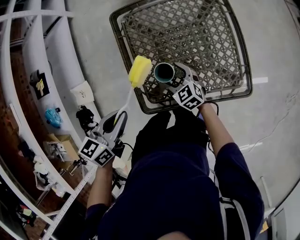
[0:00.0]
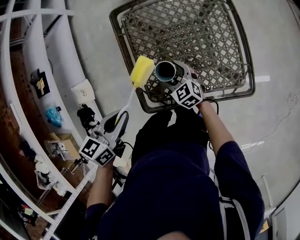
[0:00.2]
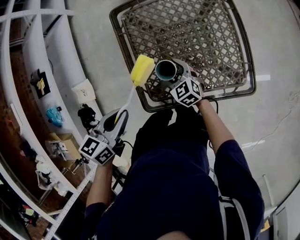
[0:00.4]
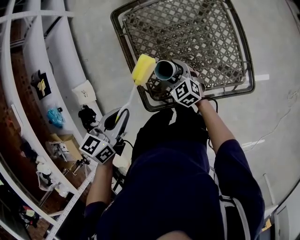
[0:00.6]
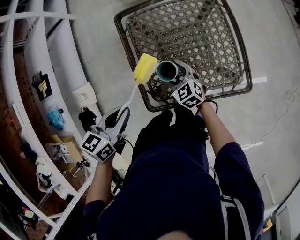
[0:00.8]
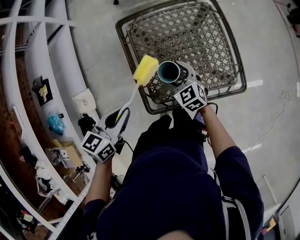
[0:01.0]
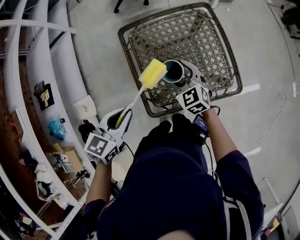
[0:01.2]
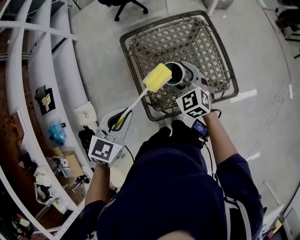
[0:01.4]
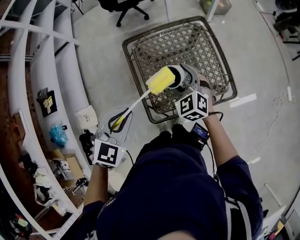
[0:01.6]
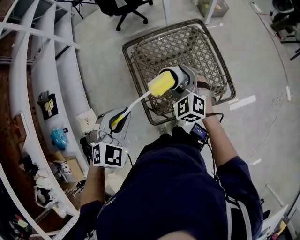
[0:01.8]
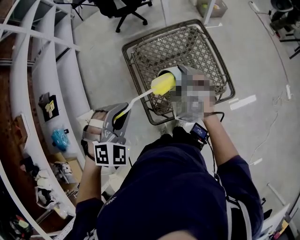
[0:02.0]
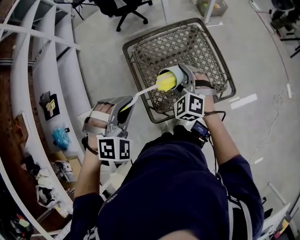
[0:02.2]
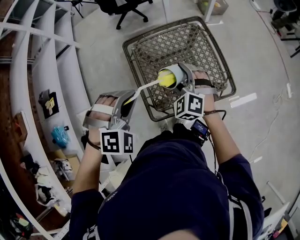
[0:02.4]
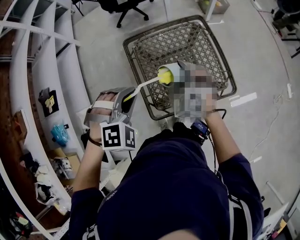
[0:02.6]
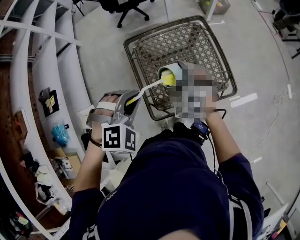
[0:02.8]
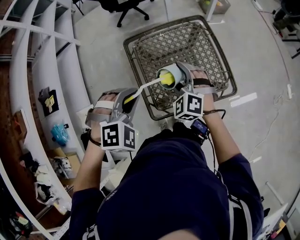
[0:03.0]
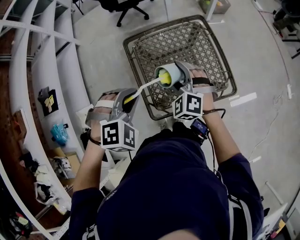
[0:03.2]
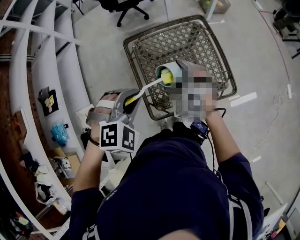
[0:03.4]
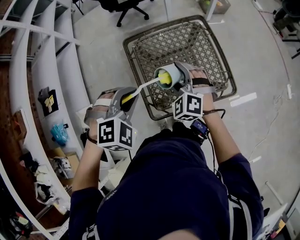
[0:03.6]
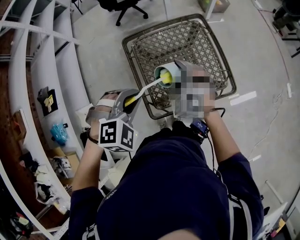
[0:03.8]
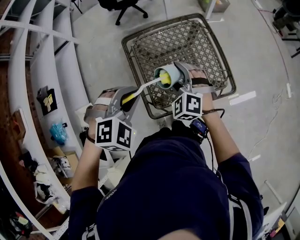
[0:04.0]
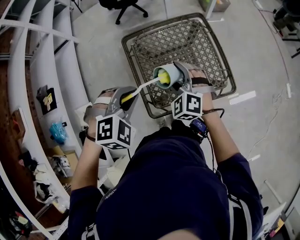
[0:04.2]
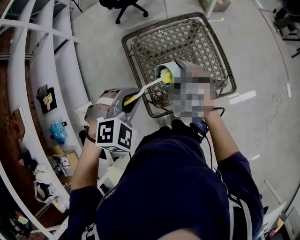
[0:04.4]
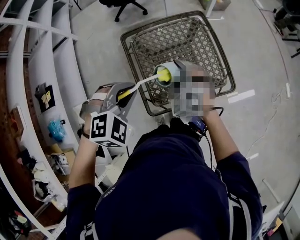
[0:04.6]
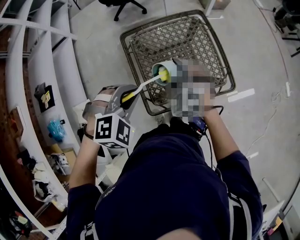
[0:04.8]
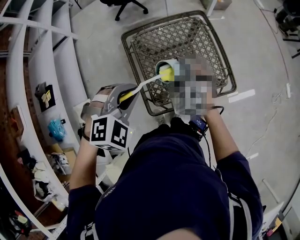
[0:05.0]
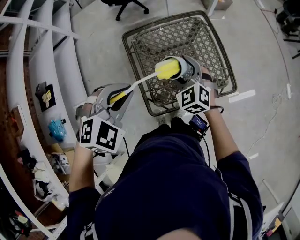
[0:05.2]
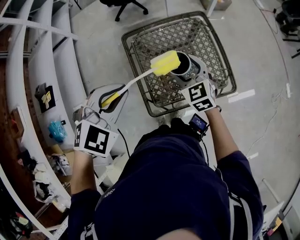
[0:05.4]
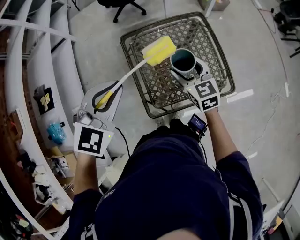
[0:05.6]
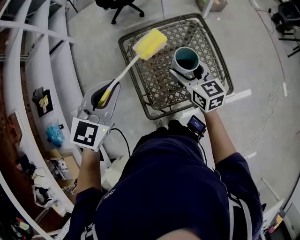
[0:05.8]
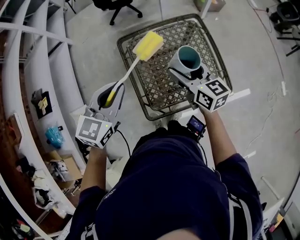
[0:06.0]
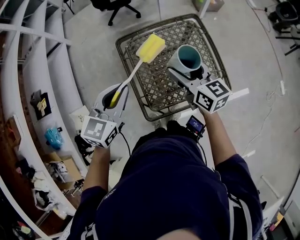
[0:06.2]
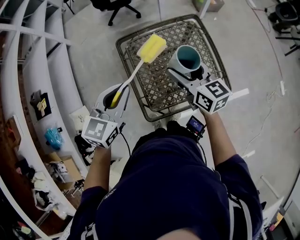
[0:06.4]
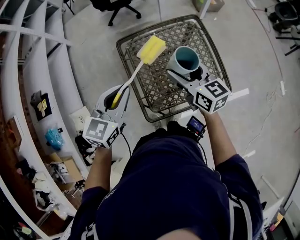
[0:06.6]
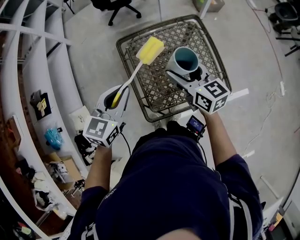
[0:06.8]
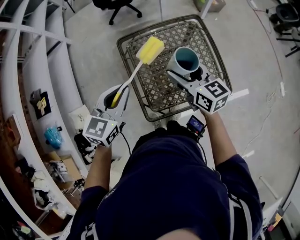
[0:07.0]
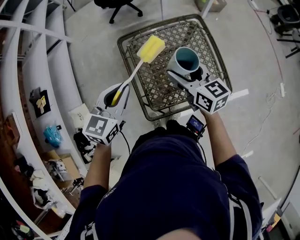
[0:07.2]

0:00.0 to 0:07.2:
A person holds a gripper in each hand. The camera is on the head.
0:00.0 to 0:01.4: The right gripper moves upward, roughly 20 cm, and turns by approximately 20 degrees. Meanwhile the left gripper heads upward, covering approximately 10 cm, and rotates roughly 30 degrees.
0:01.4 to 0:02.8: The right gripper swivels approximately 30 degrees. Meanwhile the left gripper changes place by approximately 5 cm, and rolls clockwise, seen from behind, by approximately 50 degrees.
0:02.8 to 0:04.4: The grippers stay close to where they were, moving slightly.
0:04.4 to 0:05.8: The right gripper ends up roughly 5 cm from where it was, and rolls clockwise, seen from behind, by about 60 degrees. The left gripper is displaced upward, to the left and forward by some 10 cm, and turns by some 50 degrees.
0:05.8 to 0:07.2: The left gripper goes some 5 cm downward.

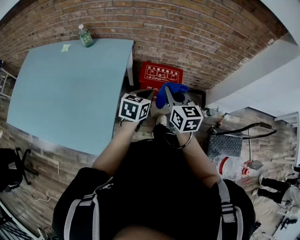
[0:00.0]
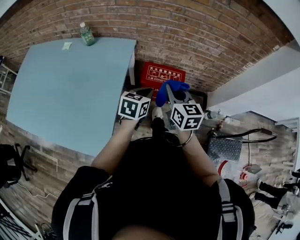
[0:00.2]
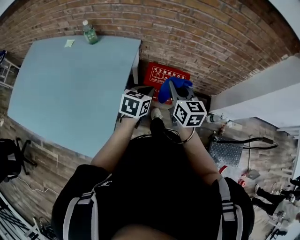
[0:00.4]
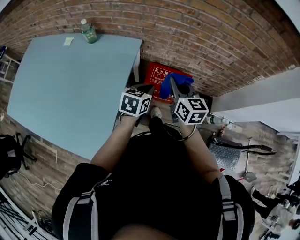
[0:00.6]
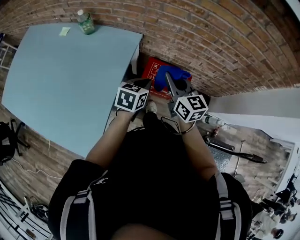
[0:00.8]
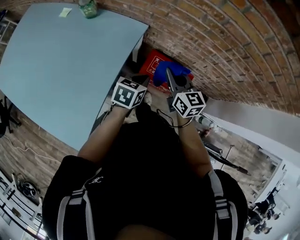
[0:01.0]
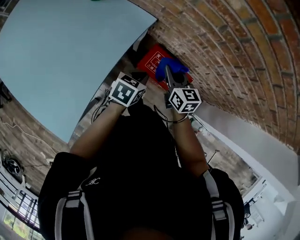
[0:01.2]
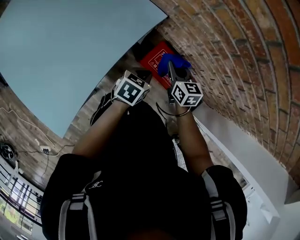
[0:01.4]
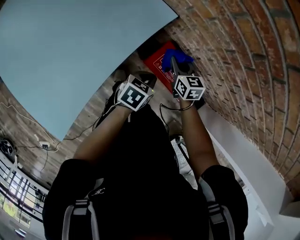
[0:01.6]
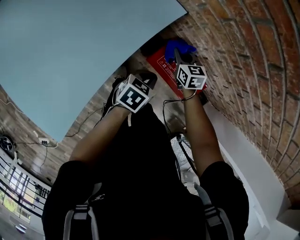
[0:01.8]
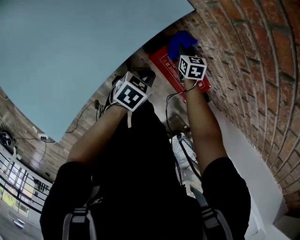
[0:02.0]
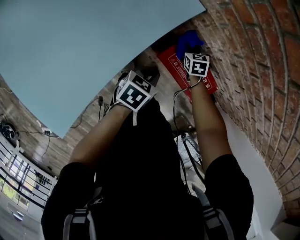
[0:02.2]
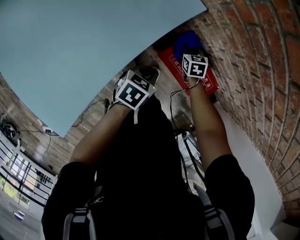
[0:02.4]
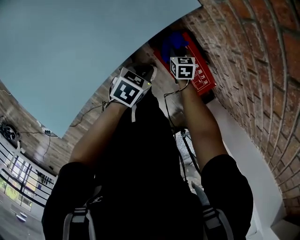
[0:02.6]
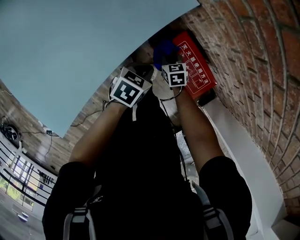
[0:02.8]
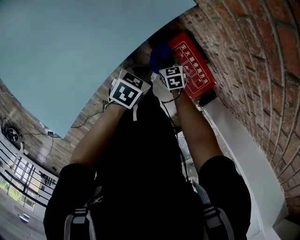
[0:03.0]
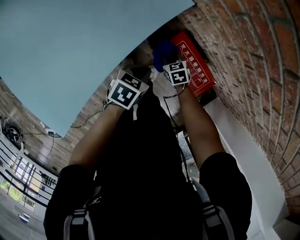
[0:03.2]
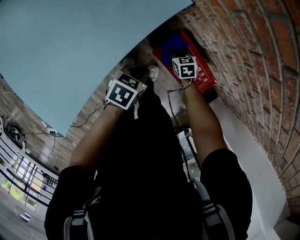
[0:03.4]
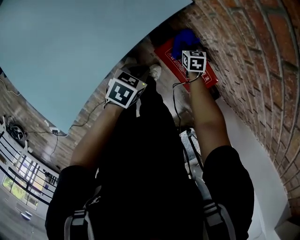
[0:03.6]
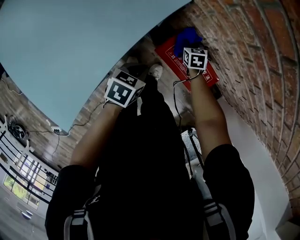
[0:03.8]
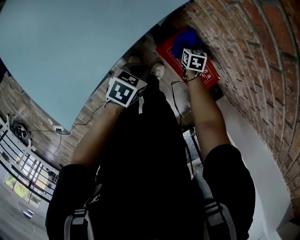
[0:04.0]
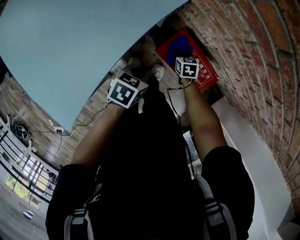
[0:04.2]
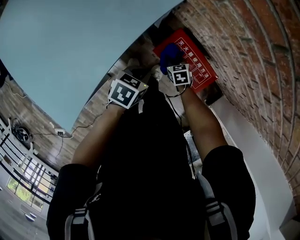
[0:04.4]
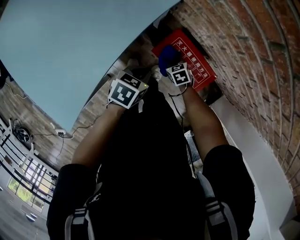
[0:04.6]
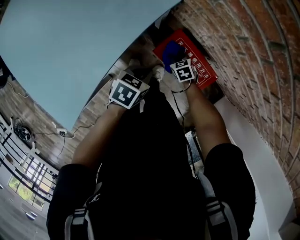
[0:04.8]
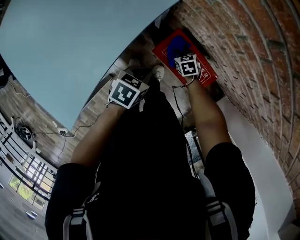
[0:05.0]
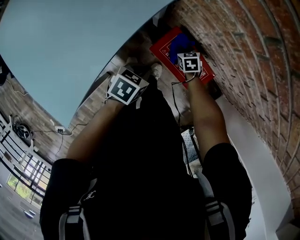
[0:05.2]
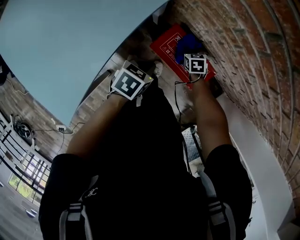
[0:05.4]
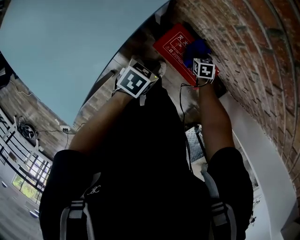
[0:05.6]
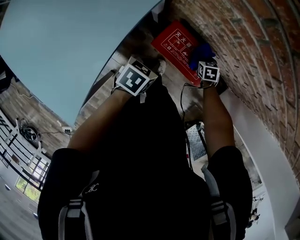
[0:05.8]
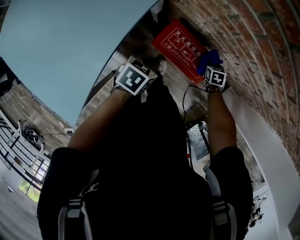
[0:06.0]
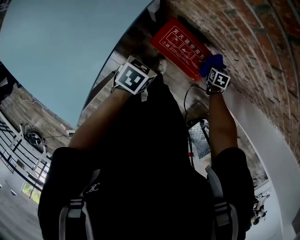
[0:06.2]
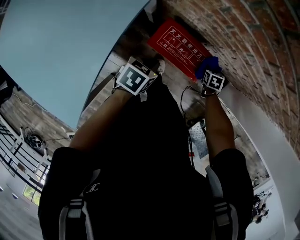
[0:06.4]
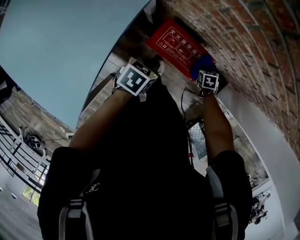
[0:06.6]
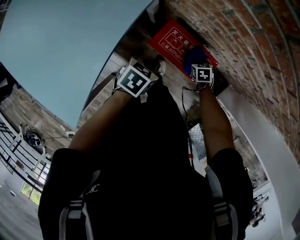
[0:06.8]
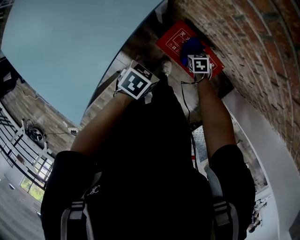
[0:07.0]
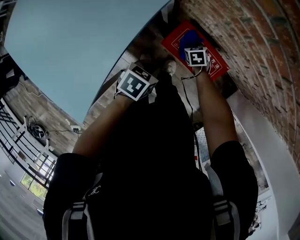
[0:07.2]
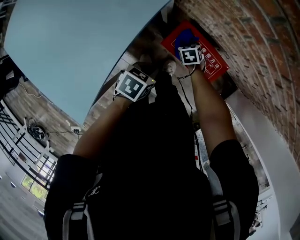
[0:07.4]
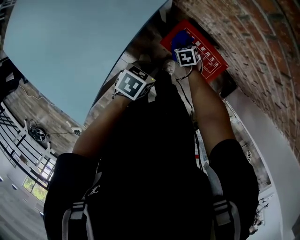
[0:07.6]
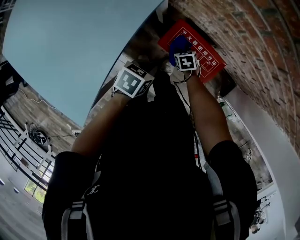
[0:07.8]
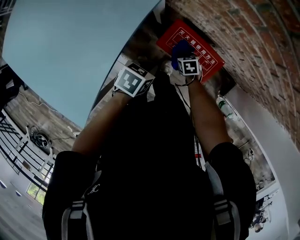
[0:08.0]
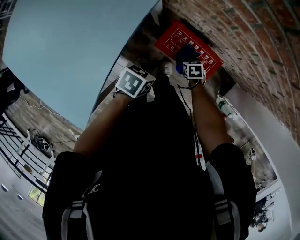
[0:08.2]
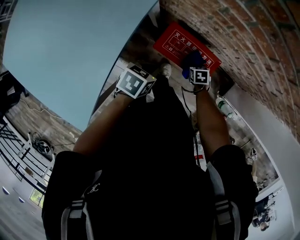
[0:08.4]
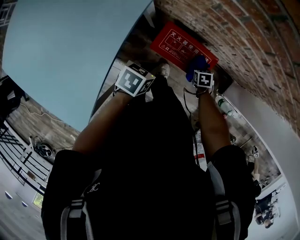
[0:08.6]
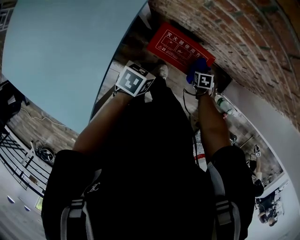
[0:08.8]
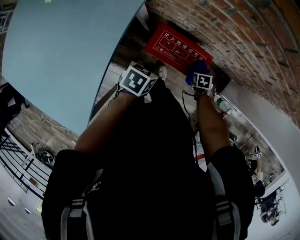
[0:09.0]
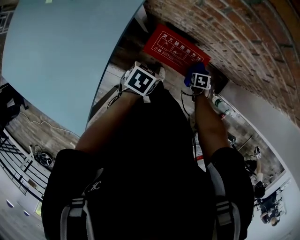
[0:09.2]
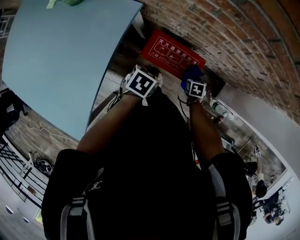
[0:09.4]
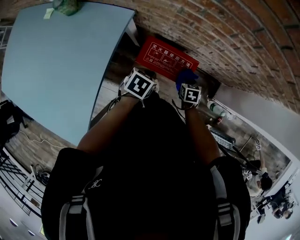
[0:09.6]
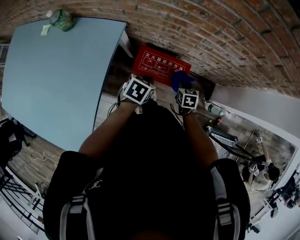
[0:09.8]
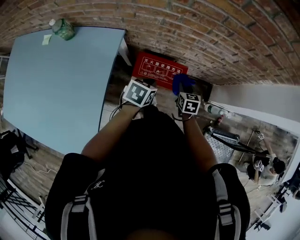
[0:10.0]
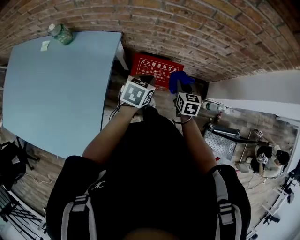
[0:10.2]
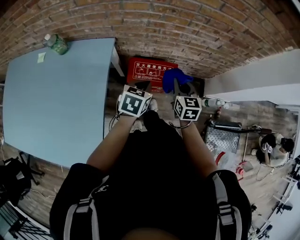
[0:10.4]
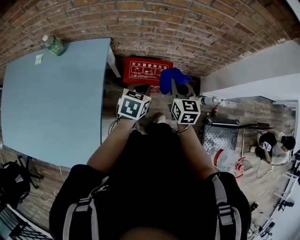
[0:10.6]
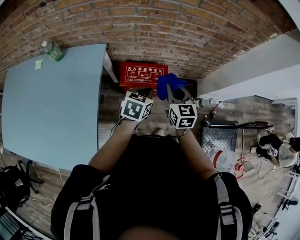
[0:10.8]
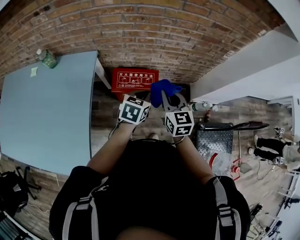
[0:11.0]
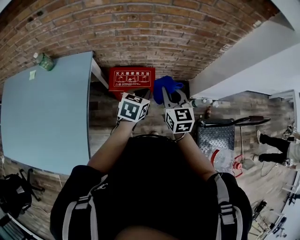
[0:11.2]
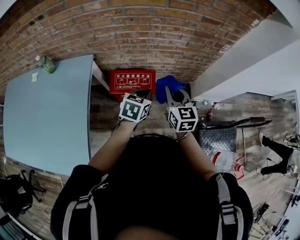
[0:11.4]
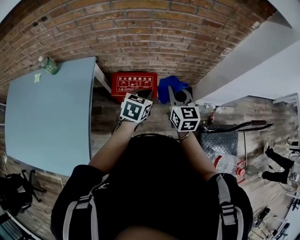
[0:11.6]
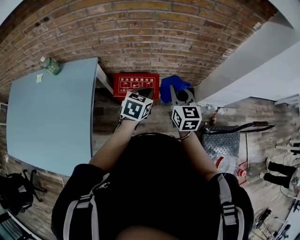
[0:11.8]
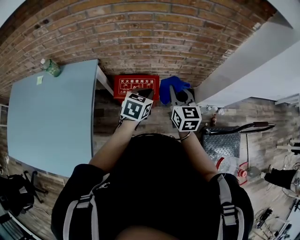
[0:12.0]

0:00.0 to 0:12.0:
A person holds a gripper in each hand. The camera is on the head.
0:00.0 to 0:01.6: Both grippers move forward and downward, roughly 40 cm. The right gripper changes its angle by about 40 degrees, while the left gripper turns by some 30 degrees.
0:01.6 to 0:03.0: The right gripper moves downward and backward, about 20 cm, and rotates some 20 degrees. The left gripper is displaced downward by some 5 cm.
0:03.0 to 0:04.4: The right gripper heads to the right, covering about 5 cm, and moves some 10 cm forward and comes back.
0:04.4 to 0:06.0: The right gripper ends up about 25 cm from where it was, and swivels some 30 degrees. The left gripper shifts by roughly 5 cm.
0:06.0 to 0:07.6: The right gripper is displaced to the left by approximately 20 cm.
0:07.6 to 0:09.0: The right gripper shifts by roughly 25 cm, and changes its angle by approximately 30 degrees, while the left gripper changes place by approximately 5 cm.
0:09.0 to 0:10.4: The right gripper heads upward, covering about 35 cm, and points its fingers approximately 50 degrees further upward, while the left gripper moves upward, approximately 15 cm, and swivels approximately 20 degrees.
0:10.4 to 0:12.0: The left gripper travels to the right by roughly 15 cm. The right gripper shifts approximately 15 cm to the right and upward.

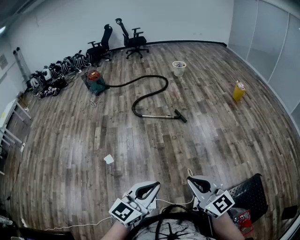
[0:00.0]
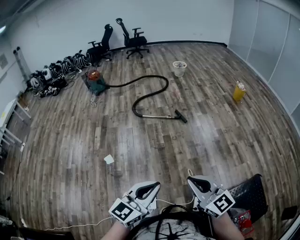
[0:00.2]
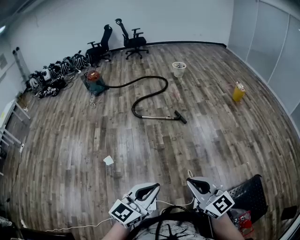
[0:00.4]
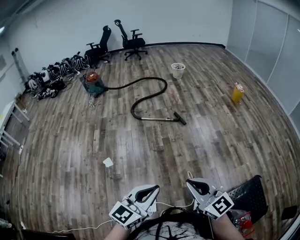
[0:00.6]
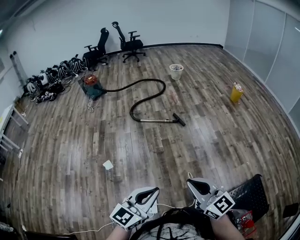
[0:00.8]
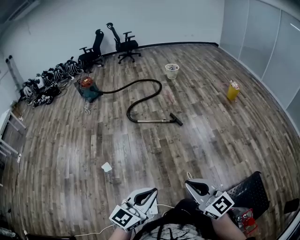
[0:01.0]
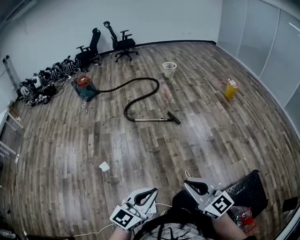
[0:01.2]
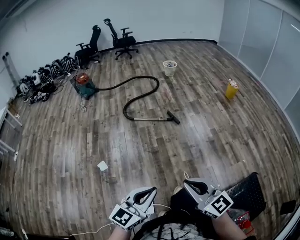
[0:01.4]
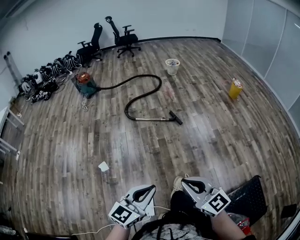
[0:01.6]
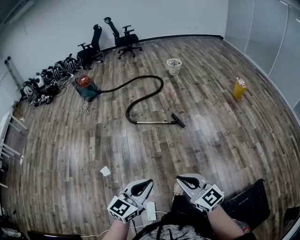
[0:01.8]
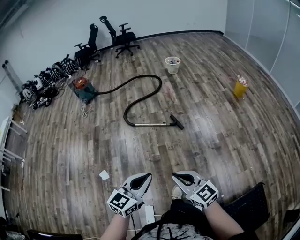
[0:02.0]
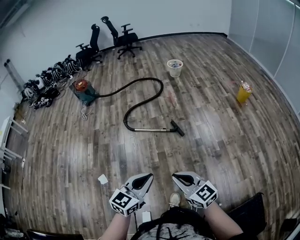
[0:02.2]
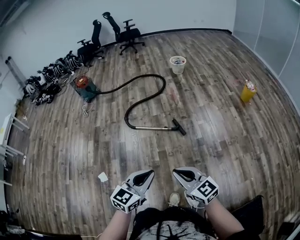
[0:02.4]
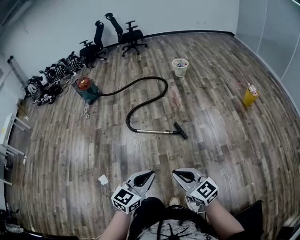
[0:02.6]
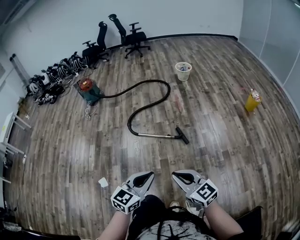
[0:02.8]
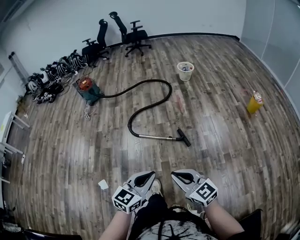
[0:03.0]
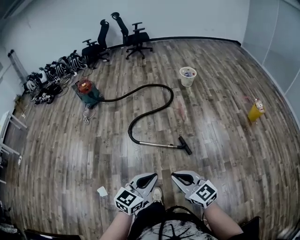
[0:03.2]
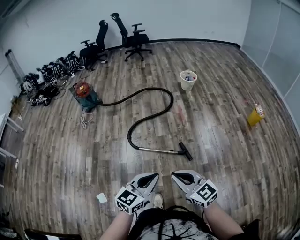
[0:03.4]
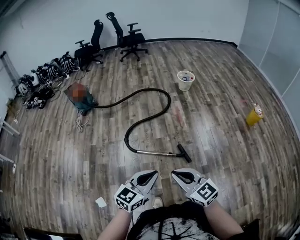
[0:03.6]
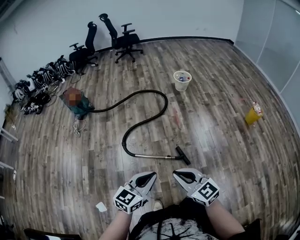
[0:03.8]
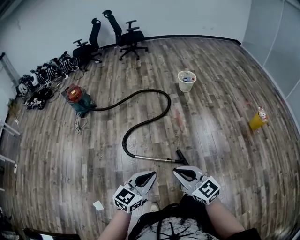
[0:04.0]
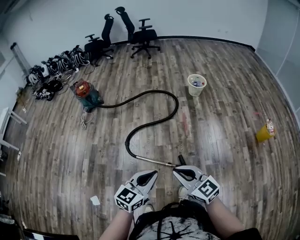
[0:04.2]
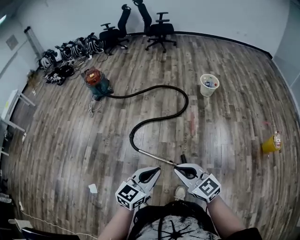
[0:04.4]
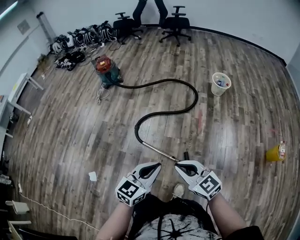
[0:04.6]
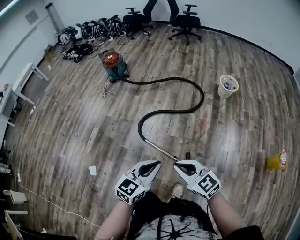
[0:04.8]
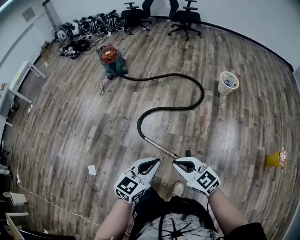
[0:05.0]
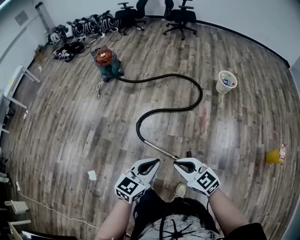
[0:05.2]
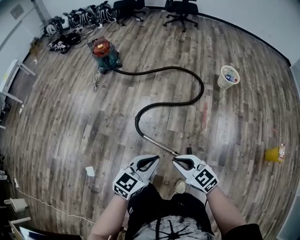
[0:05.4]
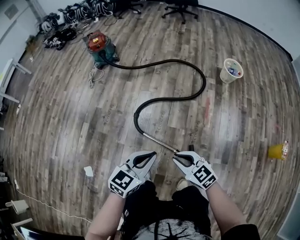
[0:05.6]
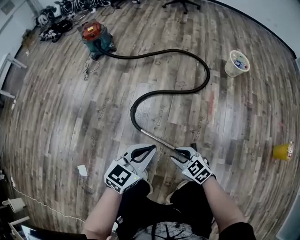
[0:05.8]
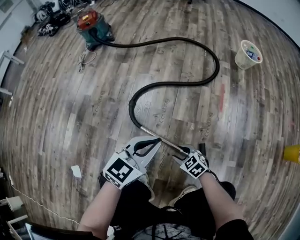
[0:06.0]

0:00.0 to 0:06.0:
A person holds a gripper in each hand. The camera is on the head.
0:00.0 to 0:01.6: The grippers both shift forward by some 10 cm.
0:01.6 to 0:03.0: The two grippers travel together, forward, some 40 cm.
0:03.0 to 0:04.4: The grippers both shift forward by approximately 40 cm.
0:04.4 to 0:06.0: The right gripper goes some 60 cm downward, angles its fingers downward, by approximately 40 degrees, and opens. The left gripper is displaced downward and forward by approximately 40 cm.
